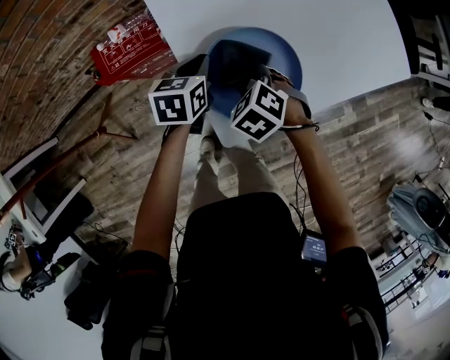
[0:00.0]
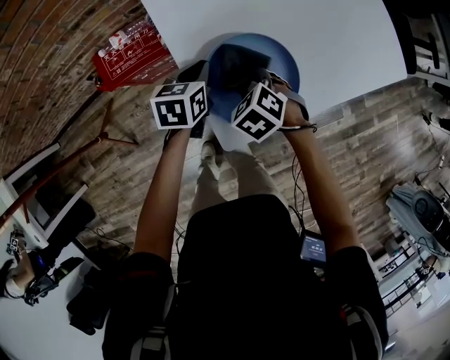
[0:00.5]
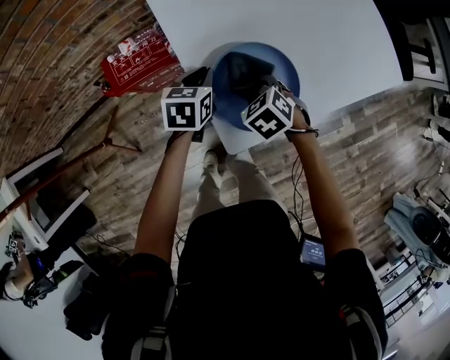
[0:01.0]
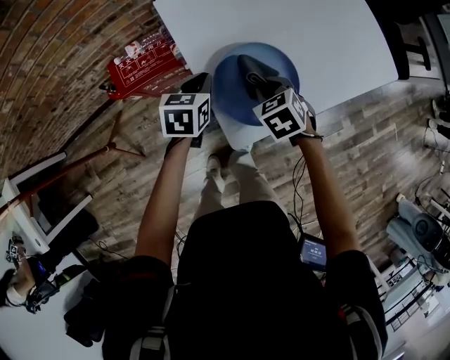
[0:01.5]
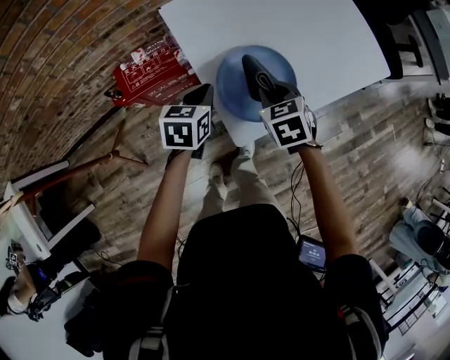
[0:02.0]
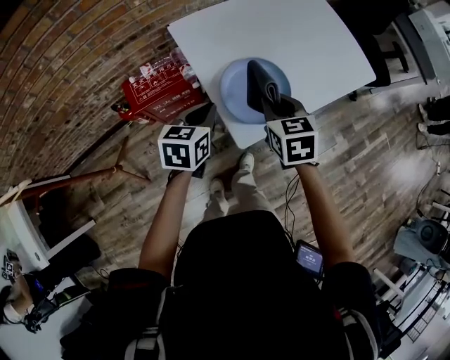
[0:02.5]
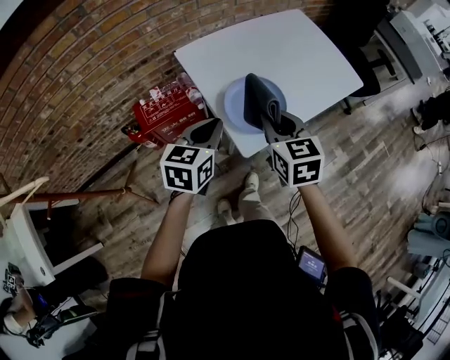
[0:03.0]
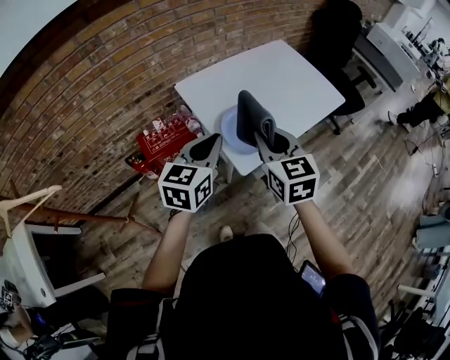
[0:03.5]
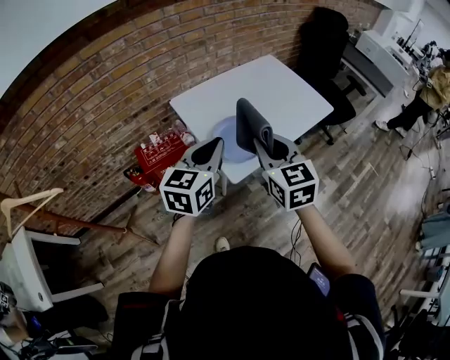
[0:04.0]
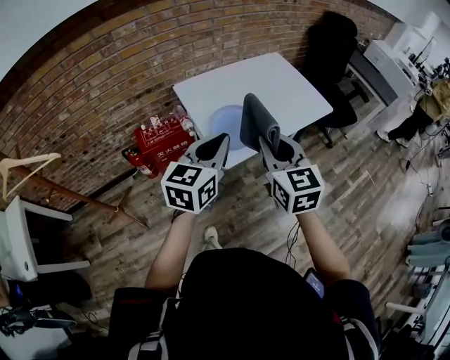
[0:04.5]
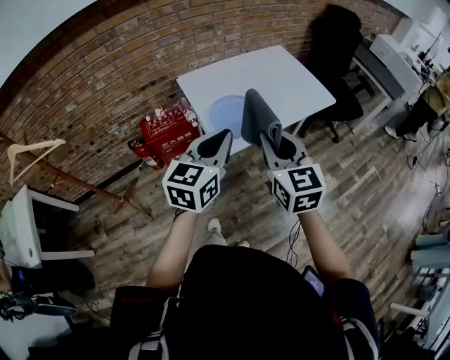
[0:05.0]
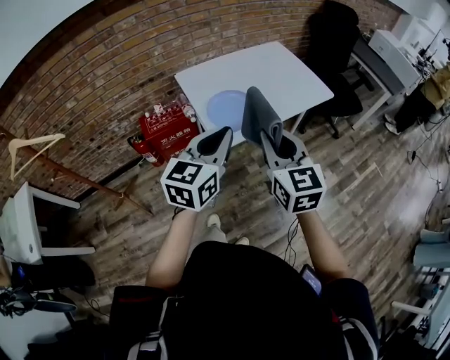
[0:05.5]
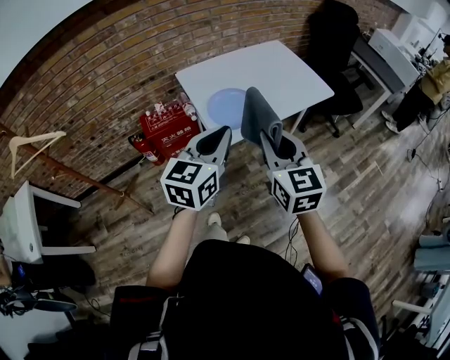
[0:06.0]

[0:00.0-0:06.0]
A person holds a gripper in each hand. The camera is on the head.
0:00.0 to 0:02.0: The right gripper travels upward by about 10 cm, and changes its angle by about 30 degrees. Meanwhile the left gripper heads upward and backward, covering roughly 10 cm.
0:02.0 to 0:04.0: The two grippers go approximately 30 cm upward and backward. The right gripper tilts its fingers approximately 40 degrees upward. The left gripper rotates some 30 degrees.
0:04.0 to 0:06.0: Both grippers travel together backward and to the right, approximately 15 cm.

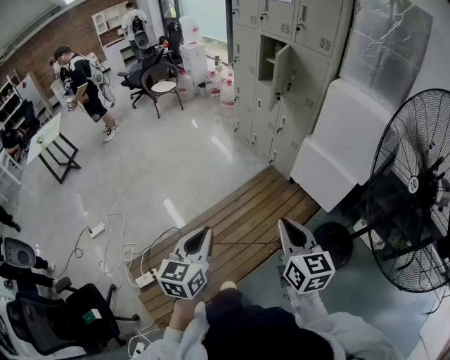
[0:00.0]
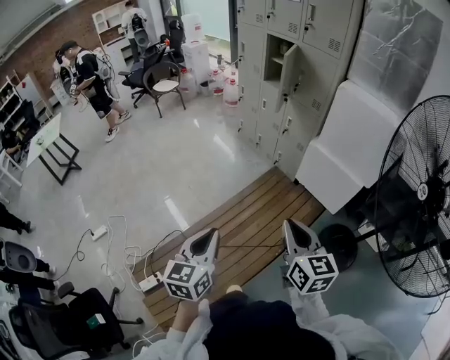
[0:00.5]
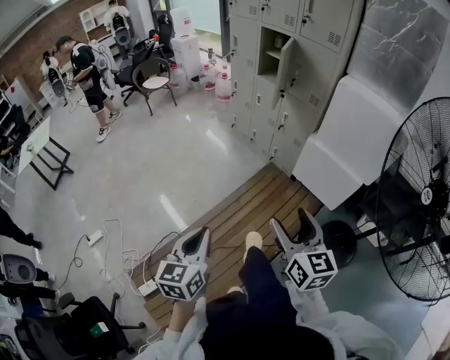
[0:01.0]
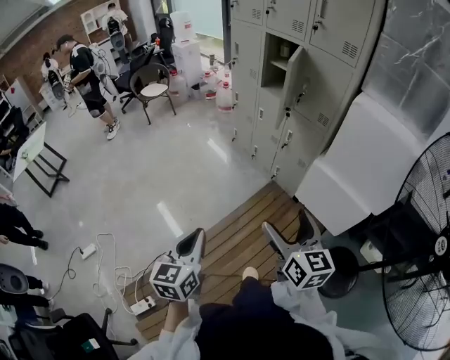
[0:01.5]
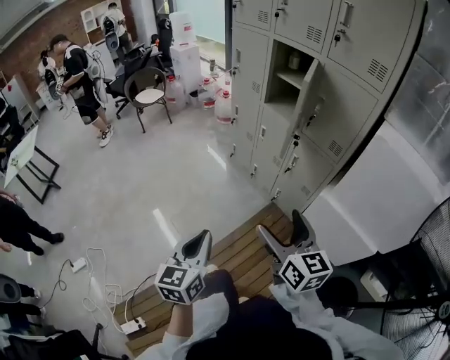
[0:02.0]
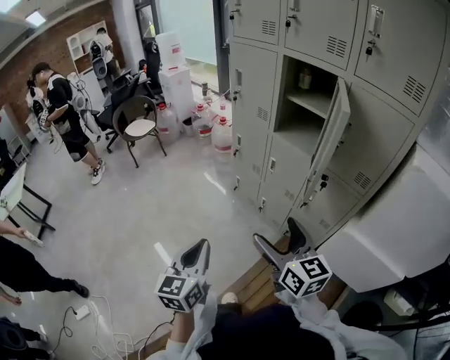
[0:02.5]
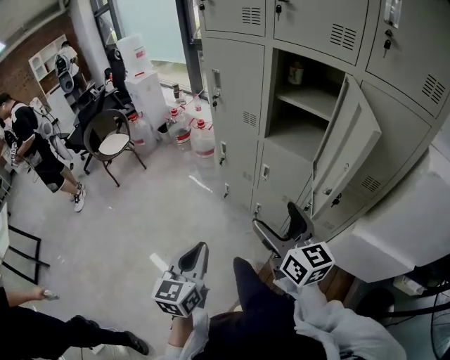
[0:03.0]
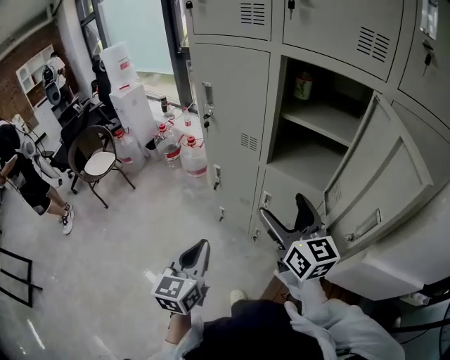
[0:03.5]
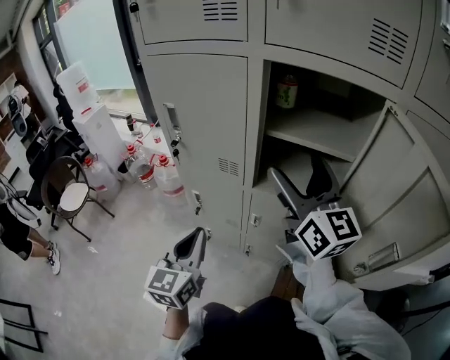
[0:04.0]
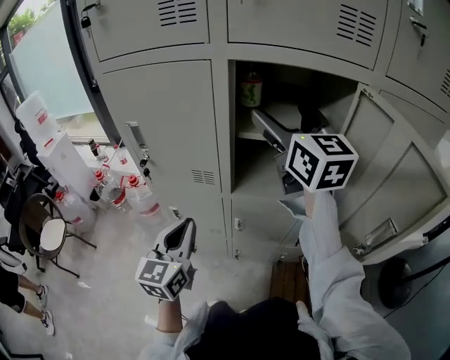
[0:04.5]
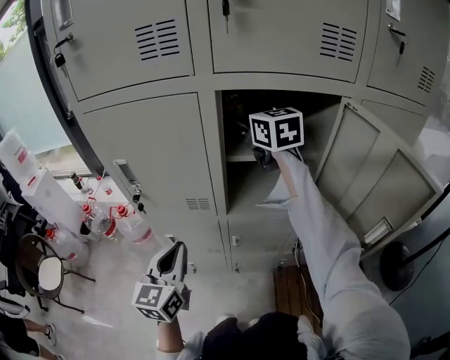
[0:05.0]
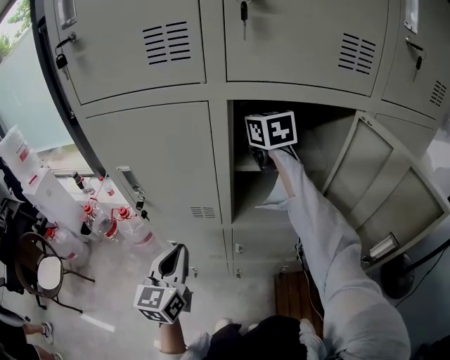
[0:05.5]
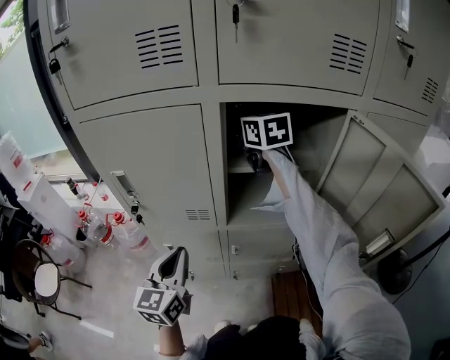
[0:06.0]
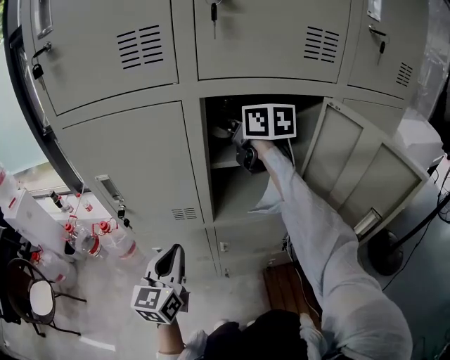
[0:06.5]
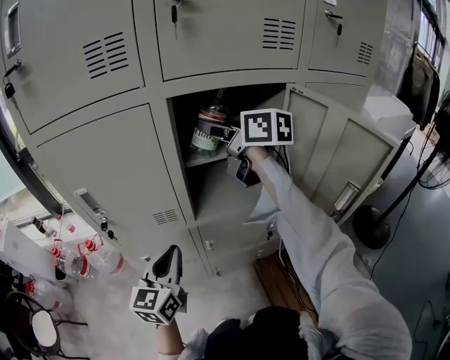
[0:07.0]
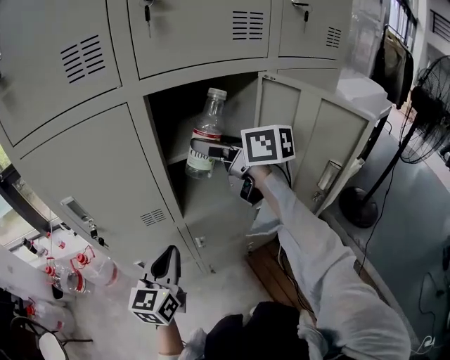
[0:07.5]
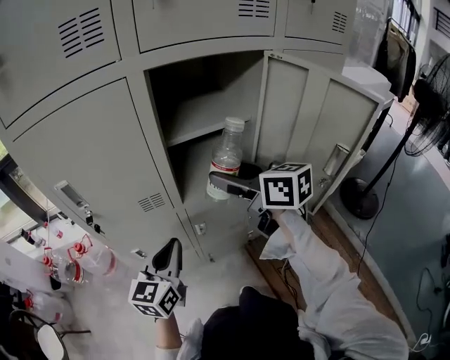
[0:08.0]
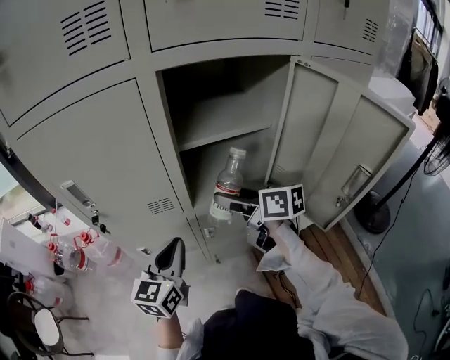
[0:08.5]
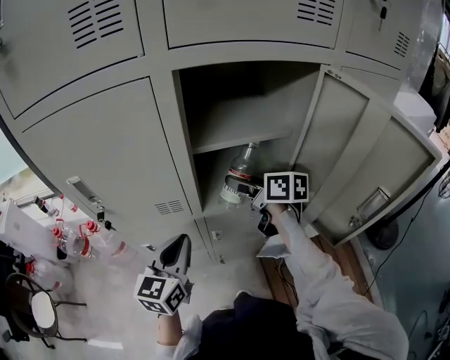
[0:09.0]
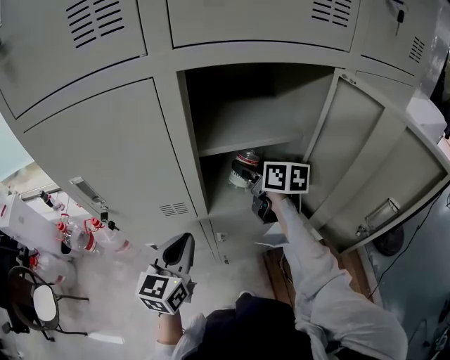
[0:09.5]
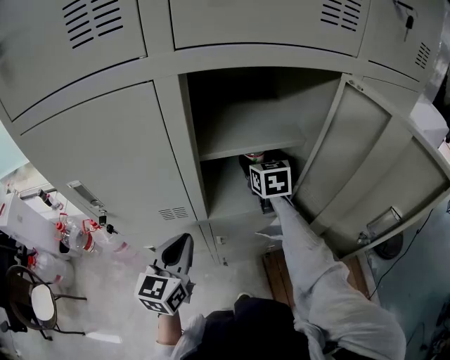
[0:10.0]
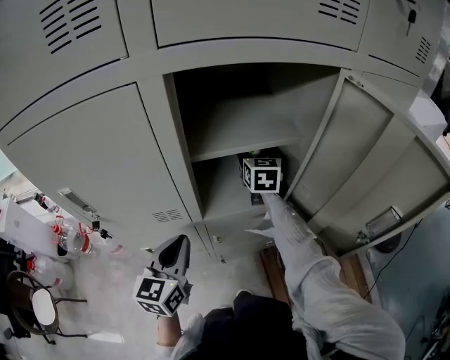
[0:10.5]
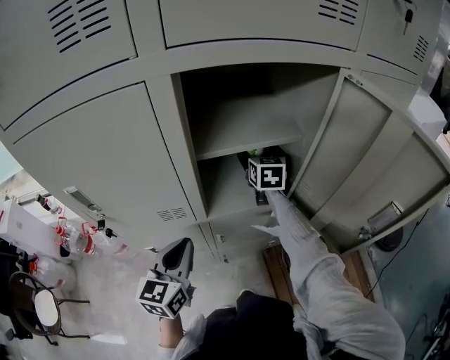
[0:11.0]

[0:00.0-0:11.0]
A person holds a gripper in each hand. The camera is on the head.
0:00.0 to 0:02.0: The two grippers travel together, forward, some 50 cm. The right gripper opens.
0:02.0 to 0:03.5: The two grippers travel together, forward, some 60 cm. The right gripper changes its angle by about 20 degrees.
0:03.5 to 0:05.5: The left gripper changes place by approximately 30 cm, and changes its angle by roughly 30 degrees, while the right gripper moves some 40 cm, and rotates some 30 degrees.
0:05.5 to 0:07.5: The right gripper moves backward, about 20 cm, and swivels approximately 30 degrees. Meanwhile the left gripper shifts about 5 cm to the right, and changes its angle by about 30 degrees.
0:07.5 to 0:09.0: The right gripper travels downward by roughly 20 cm.
0:09.0 to 0:11.0: The right gripper is displaced forward and to the right by roughly 15 cm, and rotates some 50 degrees.

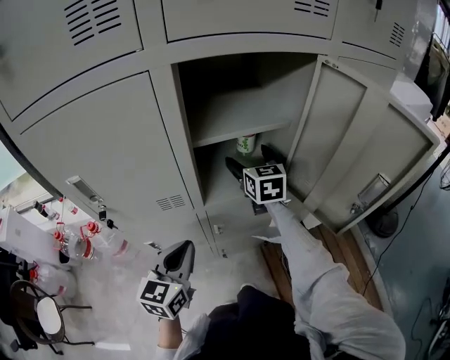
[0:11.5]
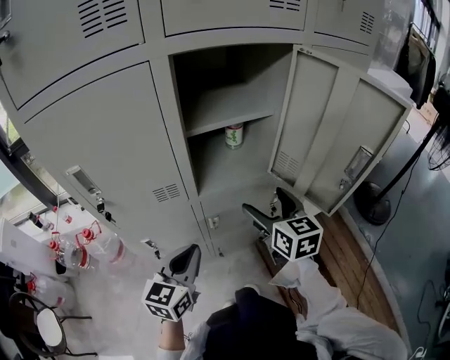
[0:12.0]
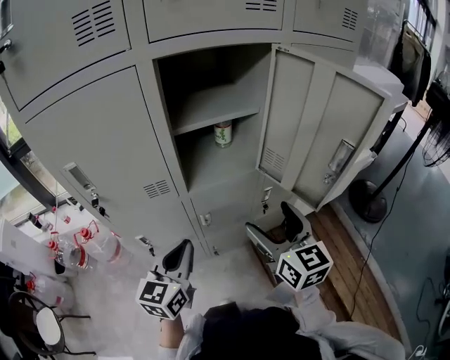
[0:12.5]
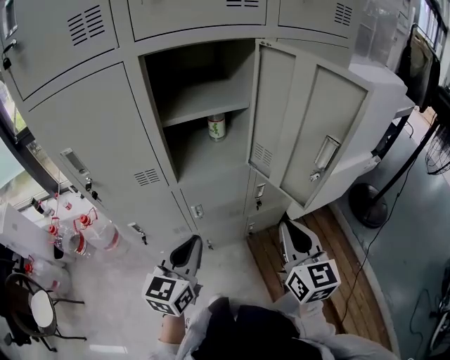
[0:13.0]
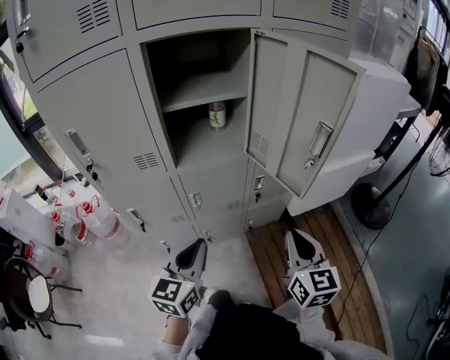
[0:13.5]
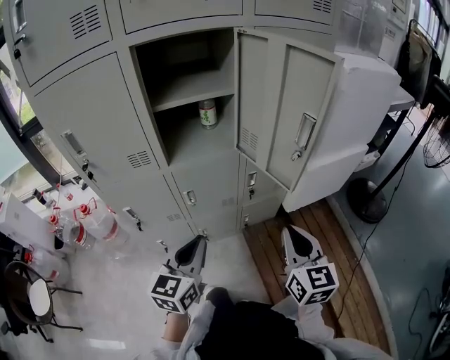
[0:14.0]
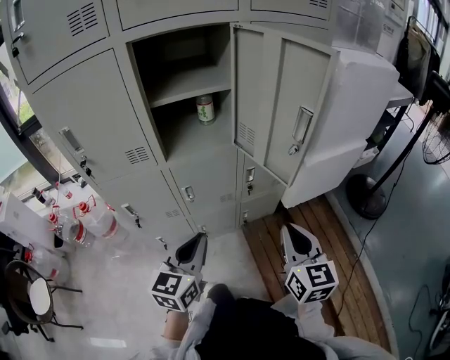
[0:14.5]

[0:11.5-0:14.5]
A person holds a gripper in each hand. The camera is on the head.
0:11.5 to 0:13.0: The left gripper shifts some 15 cm to the right and backward. The right gripper is displaced backward and to the right by approximately 35 cm, and closes up.
0:13.0 to 0:14.5: The left gripper heads to the right and backward, covering approximately 10 cm. Meanwhile the right gripper travels backward and to the right by about 10 cm.

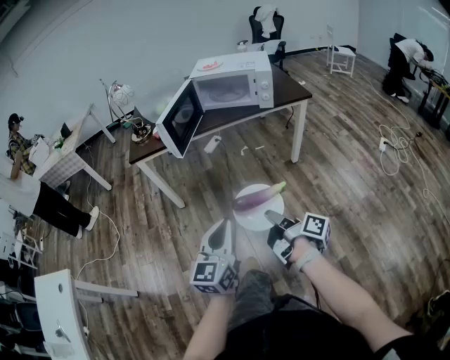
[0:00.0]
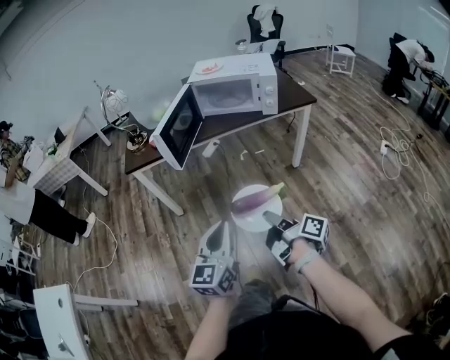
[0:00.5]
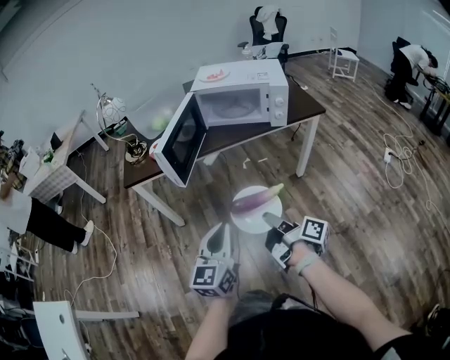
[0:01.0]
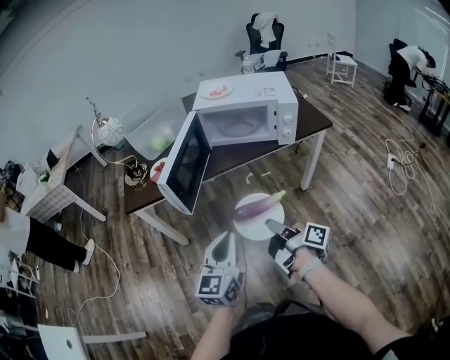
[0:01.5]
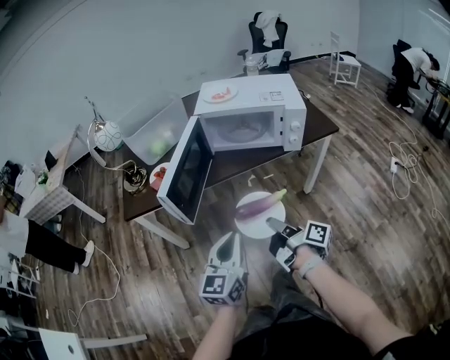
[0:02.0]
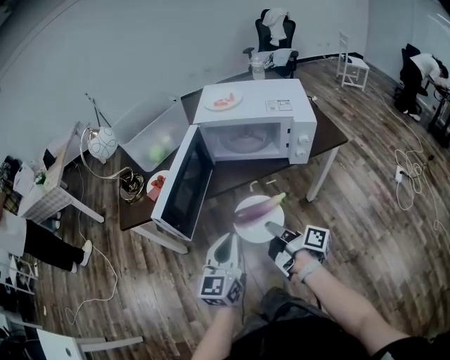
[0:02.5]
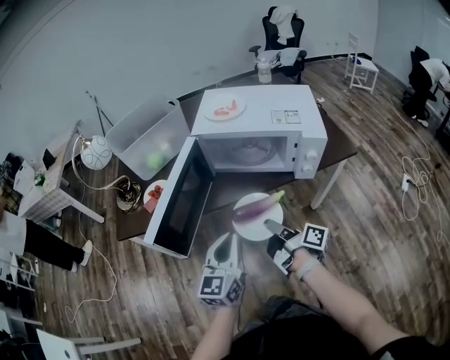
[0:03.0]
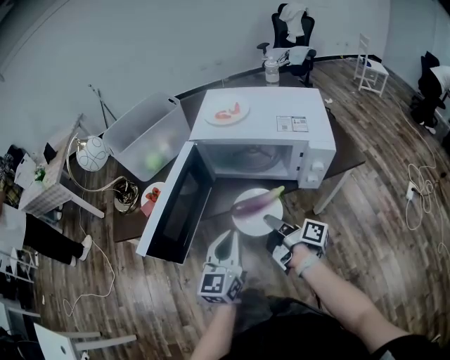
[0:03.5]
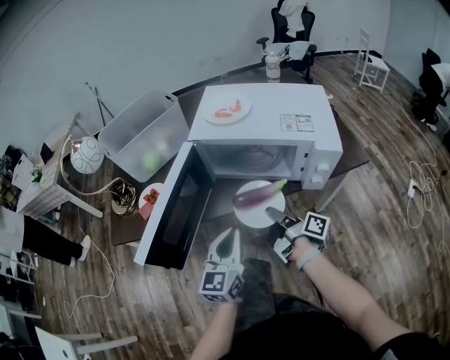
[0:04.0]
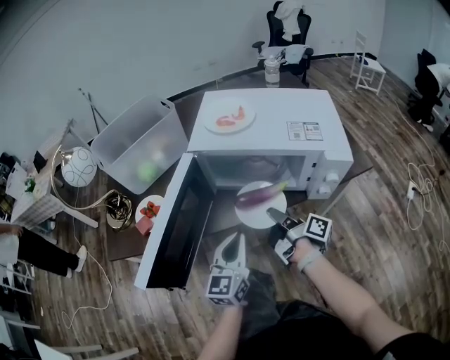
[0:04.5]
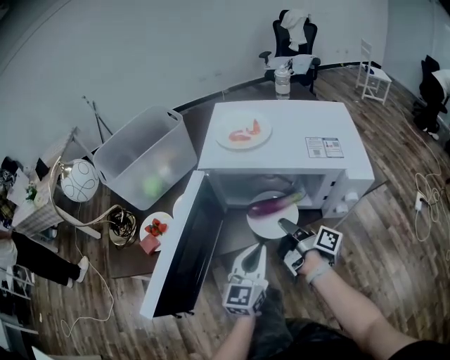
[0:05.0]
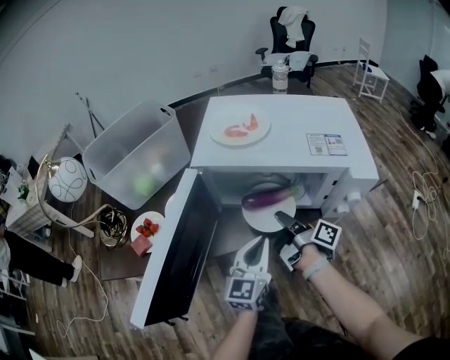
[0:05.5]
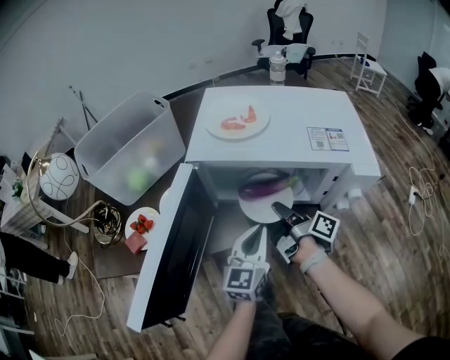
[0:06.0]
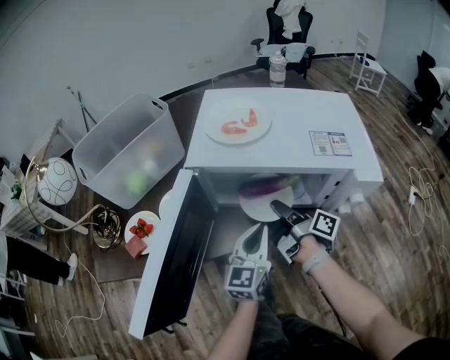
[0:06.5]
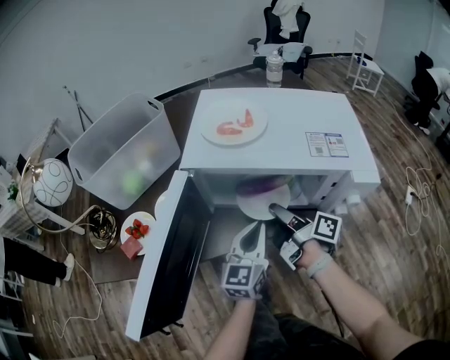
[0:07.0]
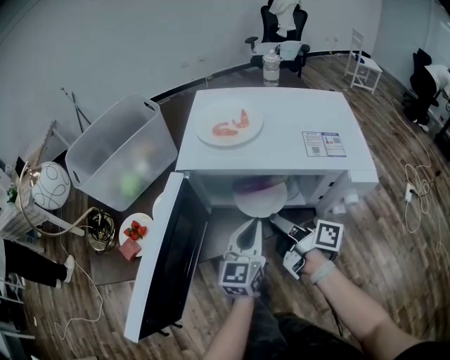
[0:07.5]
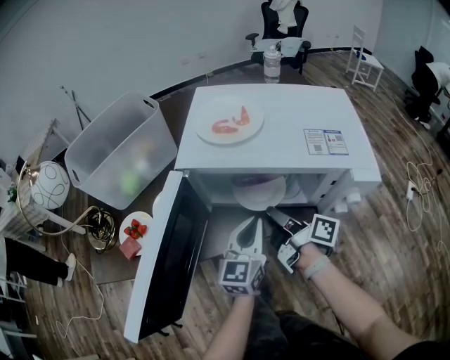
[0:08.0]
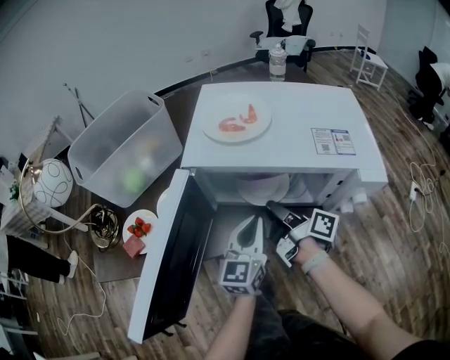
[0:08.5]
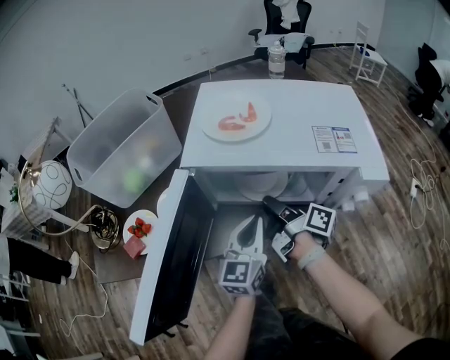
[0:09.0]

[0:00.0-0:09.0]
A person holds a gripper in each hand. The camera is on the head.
0:00.0 to 0:02.0: The left gripper changes place by about 30 cm.
0:02.0 to 0:04.5: The left gripper moves some 25 cm.
0:04.5 to 0:07.0: The left gripper moves about 15 cm.
